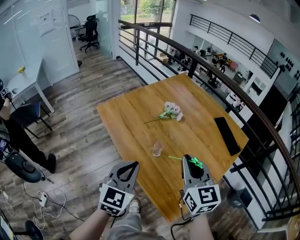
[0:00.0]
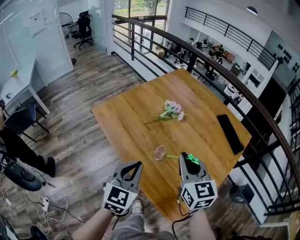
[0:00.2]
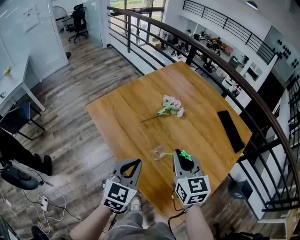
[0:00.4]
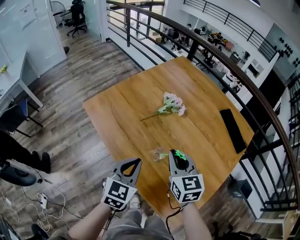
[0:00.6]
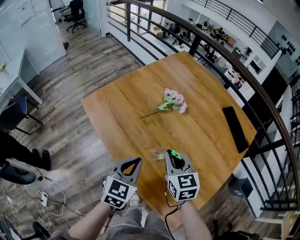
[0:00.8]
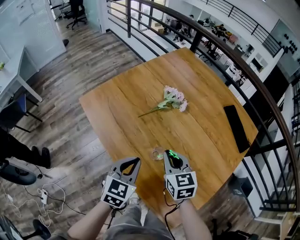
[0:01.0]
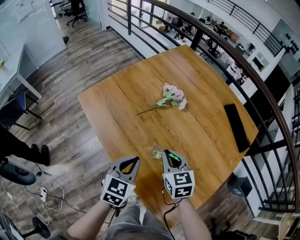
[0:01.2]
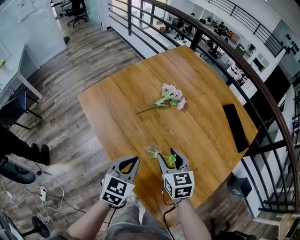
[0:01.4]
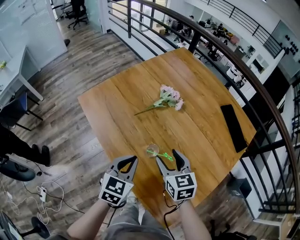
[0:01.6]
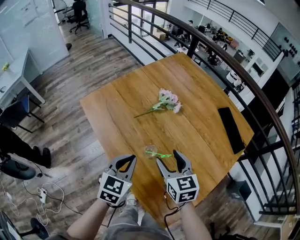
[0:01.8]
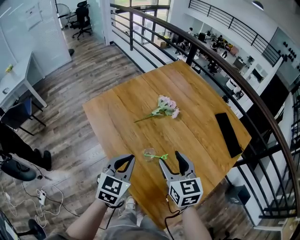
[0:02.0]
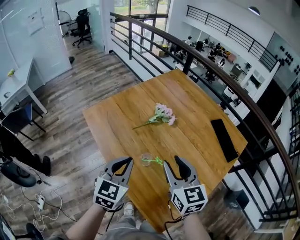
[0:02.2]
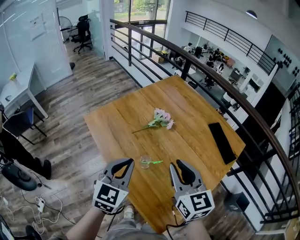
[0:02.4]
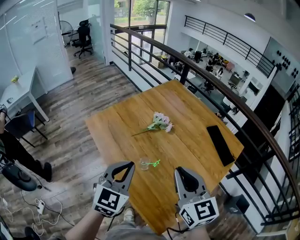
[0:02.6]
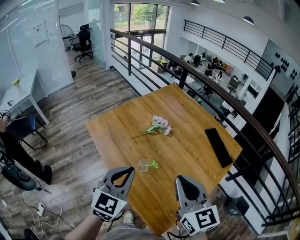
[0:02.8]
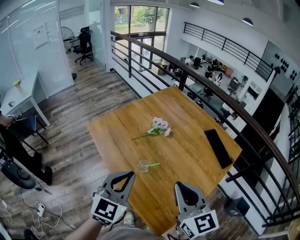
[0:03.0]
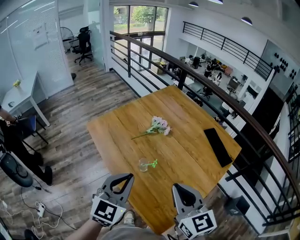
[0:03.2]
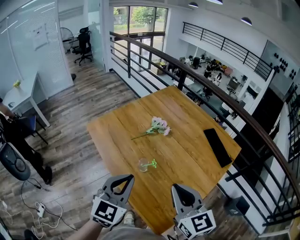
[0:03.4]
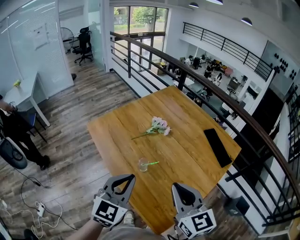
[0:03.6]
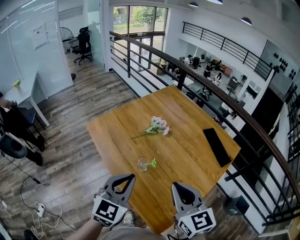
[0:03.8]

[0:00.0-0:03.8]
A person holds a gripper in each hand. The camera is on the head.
0:00.0 to 0:01.2: Both grippers move downward and forward, about 20 cm. The right gripper changes its angle by approximately 20 degrees.
0:01.2 to 0:02.6: Both grippers move upward, some 20 cm. The right gripper turns by some 20 degrees, and opens, then closes again. The left gripper changes its angle by roughly 20 degrees.
0:02.6 to 0:03.8: The grippers both shift backward by some 5 cm.

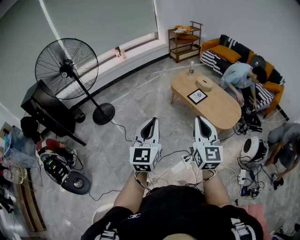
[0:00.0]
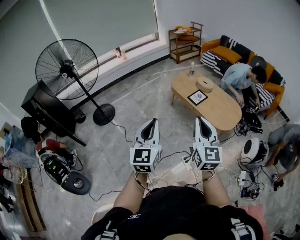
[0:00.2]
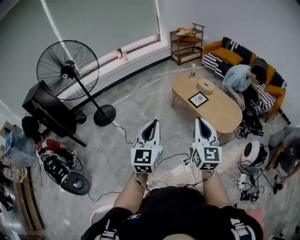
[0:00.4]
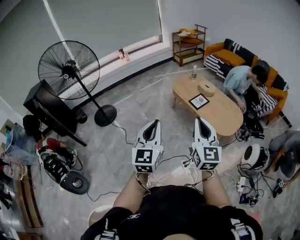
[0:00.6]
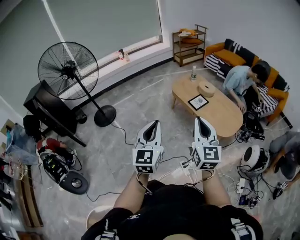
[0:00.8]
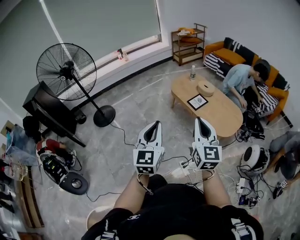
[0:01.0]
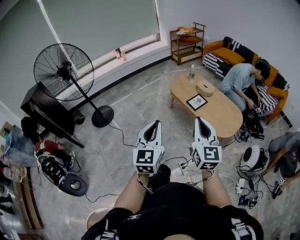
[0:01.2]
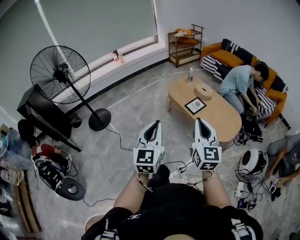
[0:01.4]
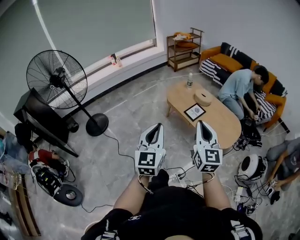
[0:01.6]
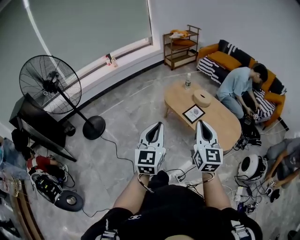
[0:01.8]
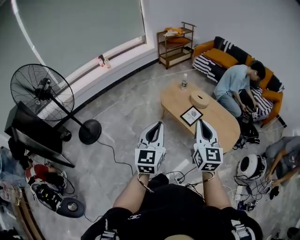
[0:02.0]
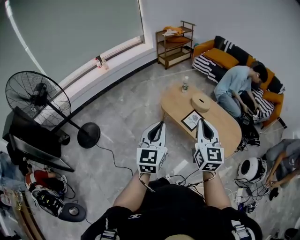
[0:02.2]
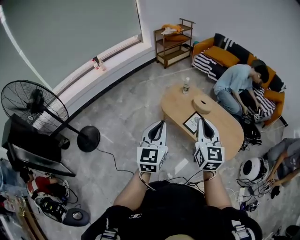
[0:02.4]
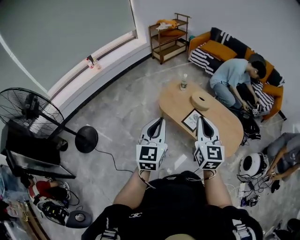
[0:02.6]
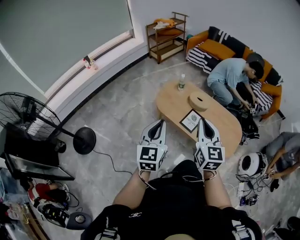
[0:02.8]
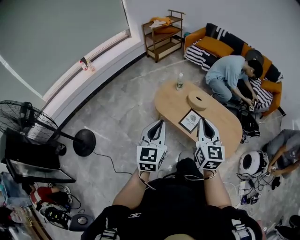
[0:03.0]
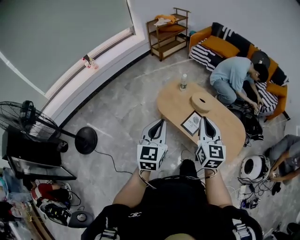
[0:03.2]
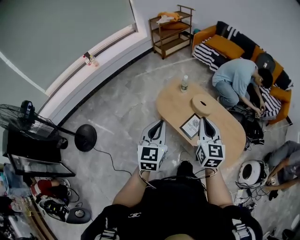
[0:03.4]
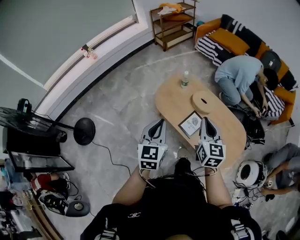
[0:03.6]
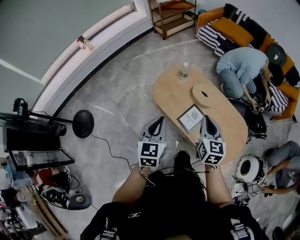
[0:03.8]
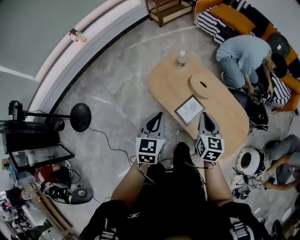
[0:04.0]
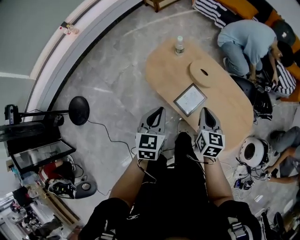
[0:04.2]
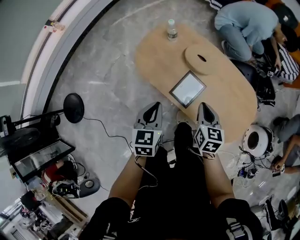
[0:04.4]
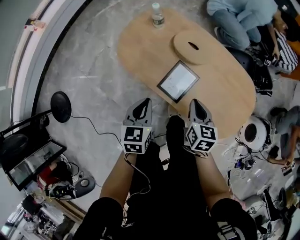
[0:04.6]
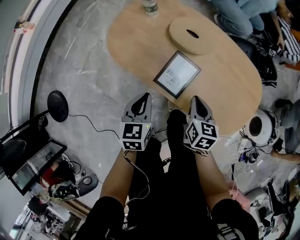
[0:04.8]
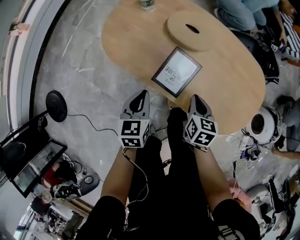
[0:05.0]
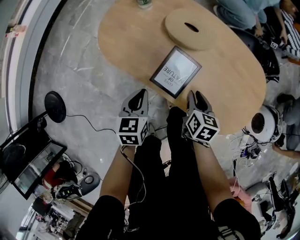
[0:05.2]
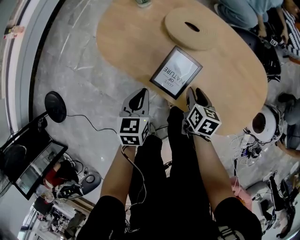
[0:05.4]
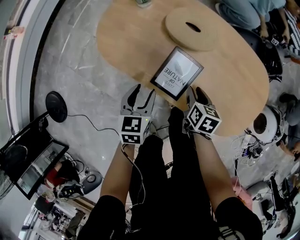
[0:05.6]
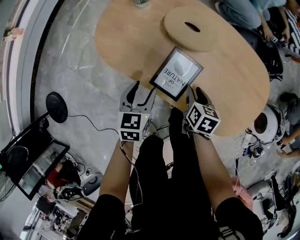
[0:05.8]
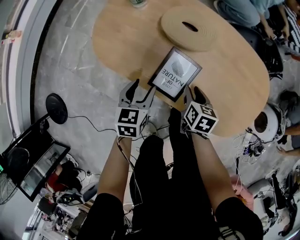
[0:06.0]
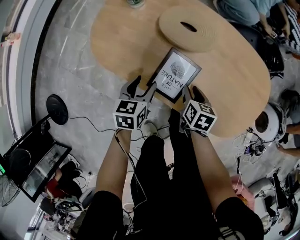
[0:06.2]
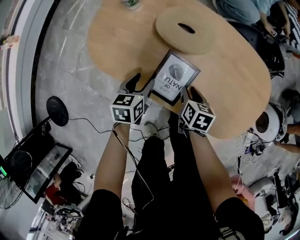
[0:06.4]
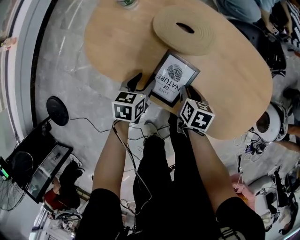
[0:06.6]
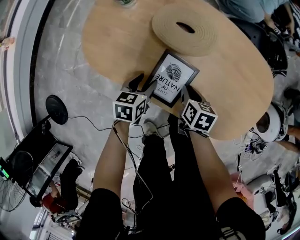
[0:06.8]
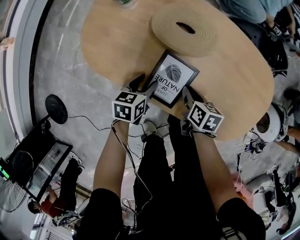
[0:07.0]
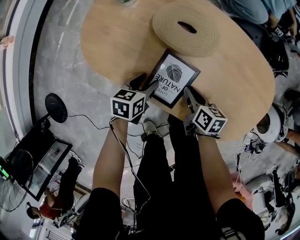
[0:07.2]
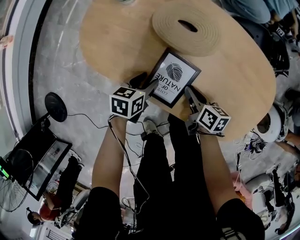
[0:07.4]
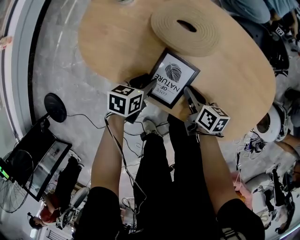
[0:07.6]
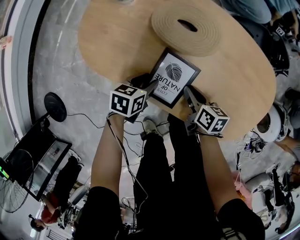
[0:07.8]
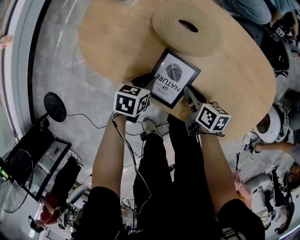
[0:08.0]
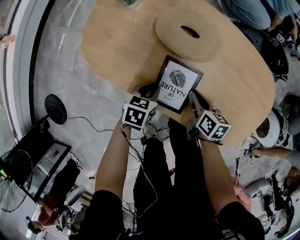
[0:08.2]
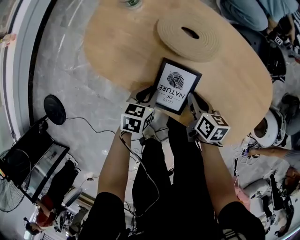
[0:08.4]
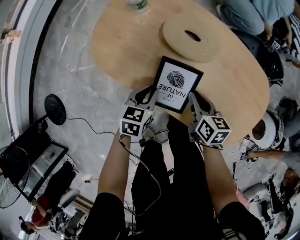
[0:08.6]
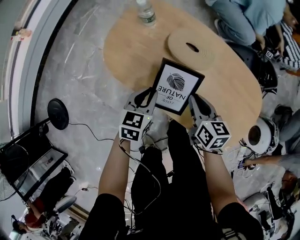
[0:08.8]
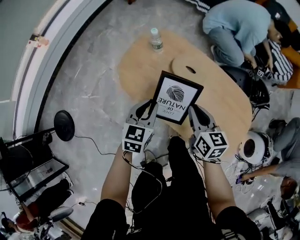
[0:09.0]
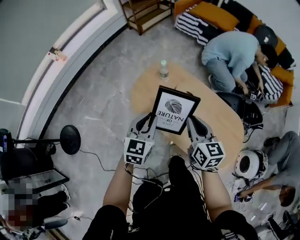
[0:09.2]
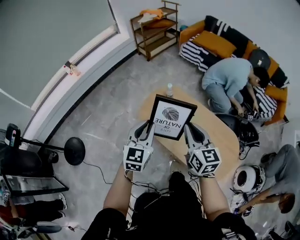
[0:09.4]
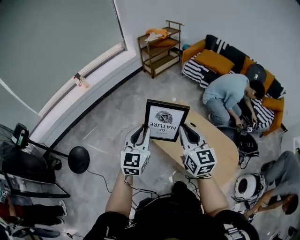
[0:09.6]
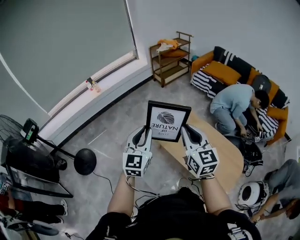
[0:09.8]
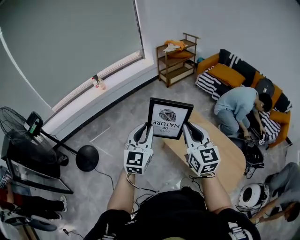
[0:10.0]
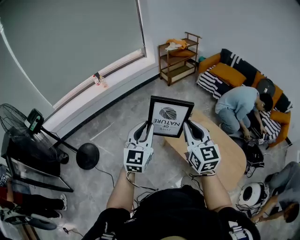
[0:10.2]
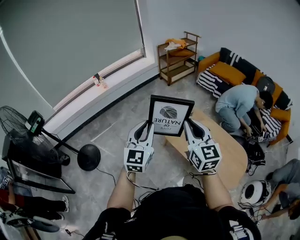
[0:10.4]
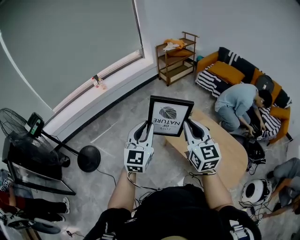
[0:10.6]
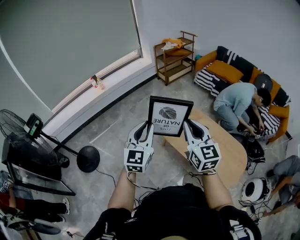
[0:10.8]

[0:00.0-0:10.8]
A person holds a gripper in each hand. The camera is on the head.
0:00.0 to 0:01.6: Both grippers travel together forward, approximately 20 cm.
0:01.6 to 0:03.0: Both grippers travel together forward, about 35 cm.
0:03.0 to 0:04.6: The two grippers go roughly 50 cm downward and forward. The right gripper tips its fingers downward by some 30 degrees. Meanwhile the left gripper tilts its fingers some 30 degrees downward.
0:04.6 to 0:06.2: The right gripper goes approximately 20 cm downward, changes its angle by some 20 degrees, and opens up; the left gripper goes about 20 cm downward and forward, and opens.
0:06.2 to 0:07.8: The left gripper heads downward, covering roughly 10 cm, and changes its angle by approximately 20 degrees, while the right gripper turns by about 20 degrees.
0:07.8 to 0:09.2: The grippers both shift upward by about 50 cm. The left gripper swivels approximately 50 degrees, and closes up. The right gripper turns by some 50 degrees.
0:09.2 to 0:10.8: The right gripper travels upward and to the left by roughly 40 cm, and changes its angle by roughly 30 degrees. Meanwhile the left gripper goes roughly 40 cm upward, to the left and backward, and swivels roughly 30 degrees.

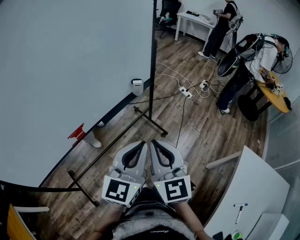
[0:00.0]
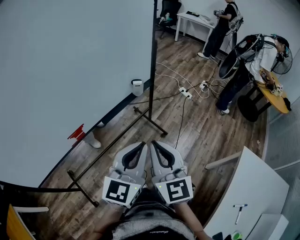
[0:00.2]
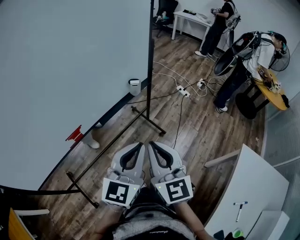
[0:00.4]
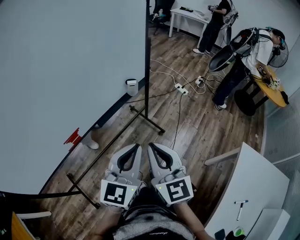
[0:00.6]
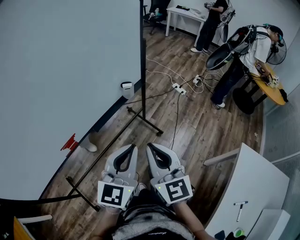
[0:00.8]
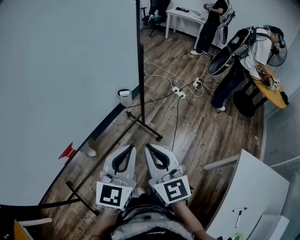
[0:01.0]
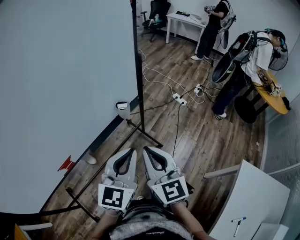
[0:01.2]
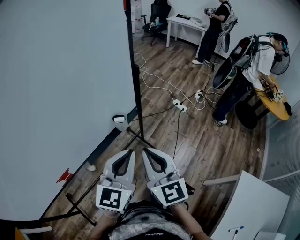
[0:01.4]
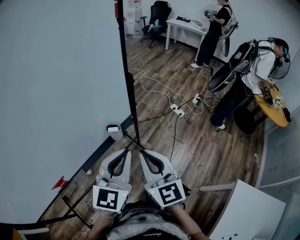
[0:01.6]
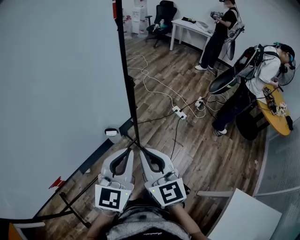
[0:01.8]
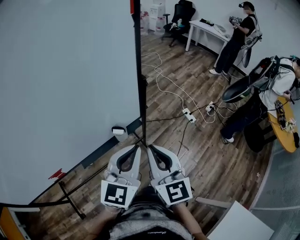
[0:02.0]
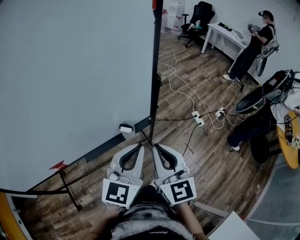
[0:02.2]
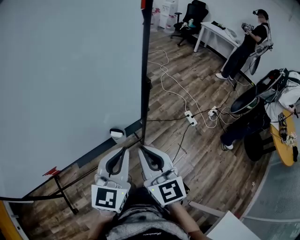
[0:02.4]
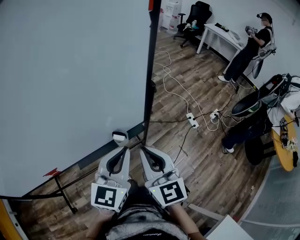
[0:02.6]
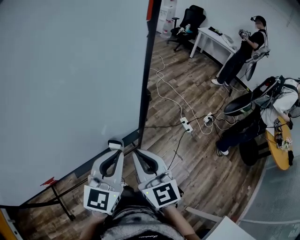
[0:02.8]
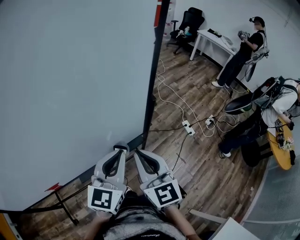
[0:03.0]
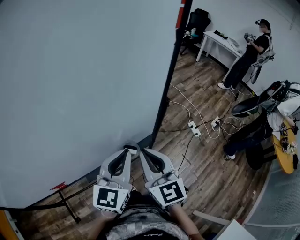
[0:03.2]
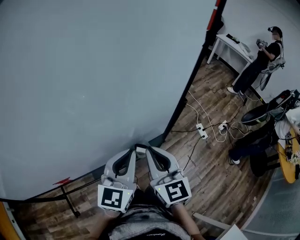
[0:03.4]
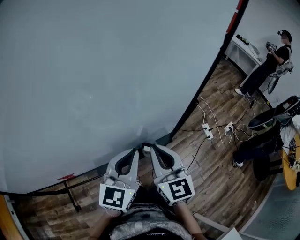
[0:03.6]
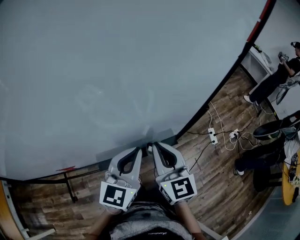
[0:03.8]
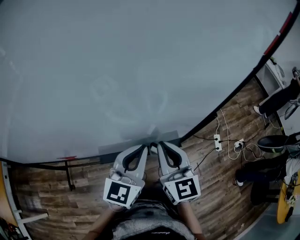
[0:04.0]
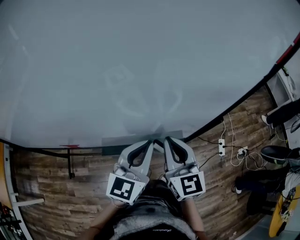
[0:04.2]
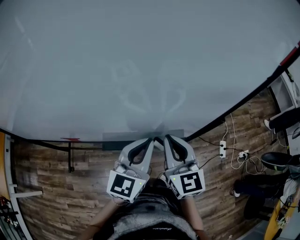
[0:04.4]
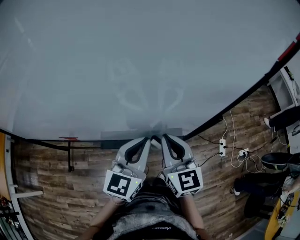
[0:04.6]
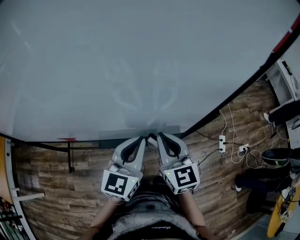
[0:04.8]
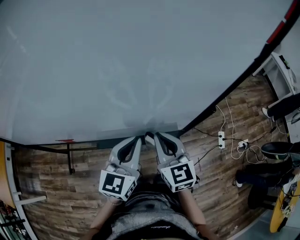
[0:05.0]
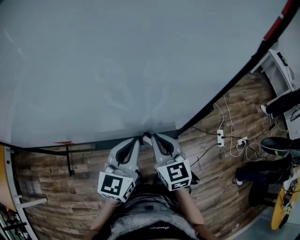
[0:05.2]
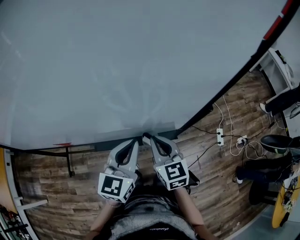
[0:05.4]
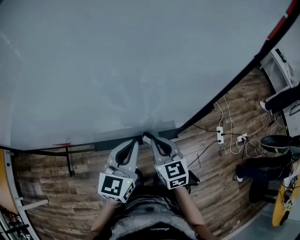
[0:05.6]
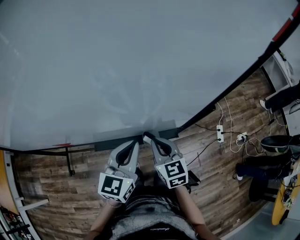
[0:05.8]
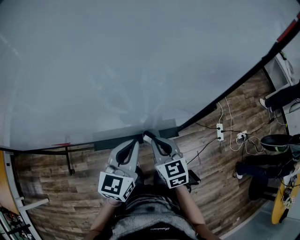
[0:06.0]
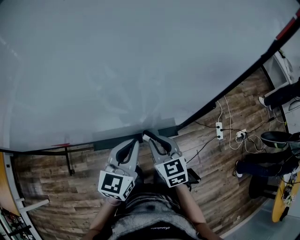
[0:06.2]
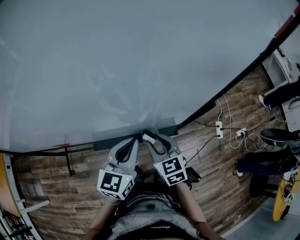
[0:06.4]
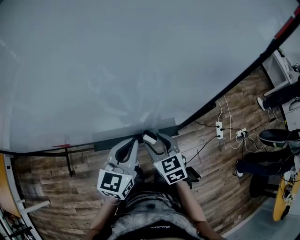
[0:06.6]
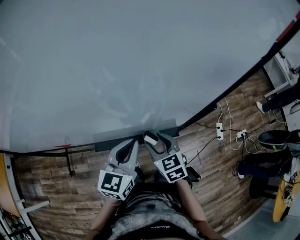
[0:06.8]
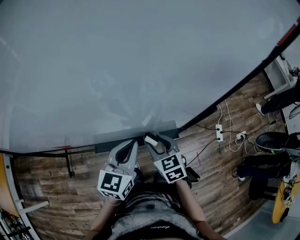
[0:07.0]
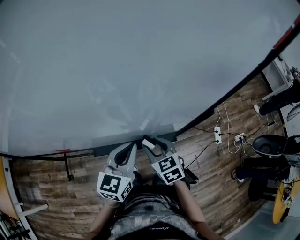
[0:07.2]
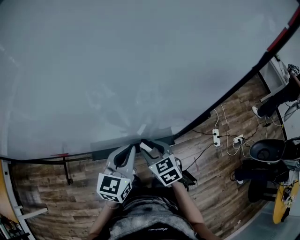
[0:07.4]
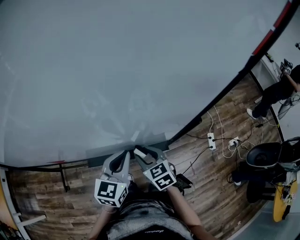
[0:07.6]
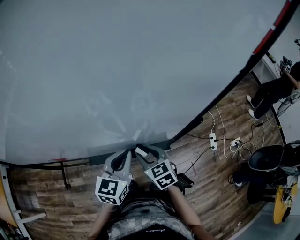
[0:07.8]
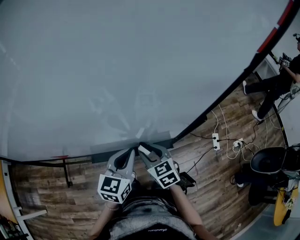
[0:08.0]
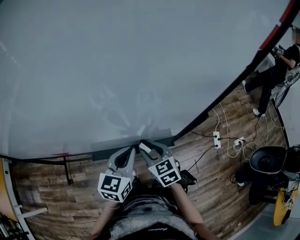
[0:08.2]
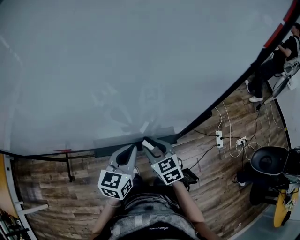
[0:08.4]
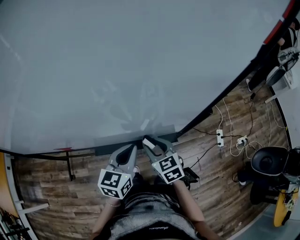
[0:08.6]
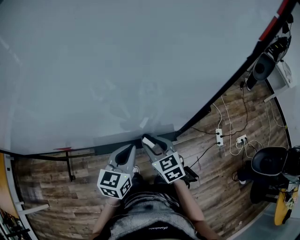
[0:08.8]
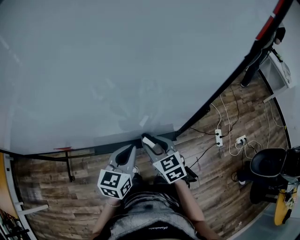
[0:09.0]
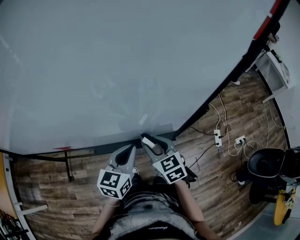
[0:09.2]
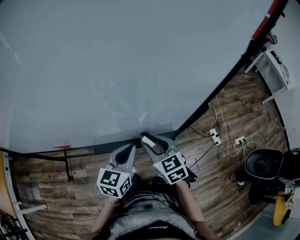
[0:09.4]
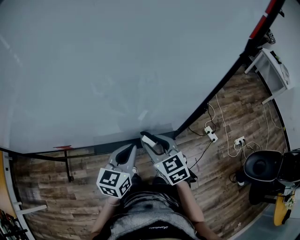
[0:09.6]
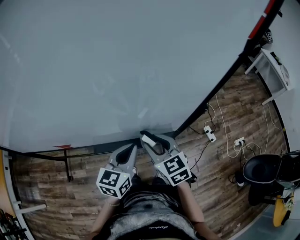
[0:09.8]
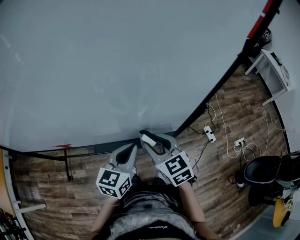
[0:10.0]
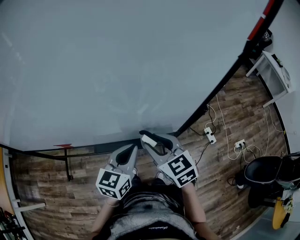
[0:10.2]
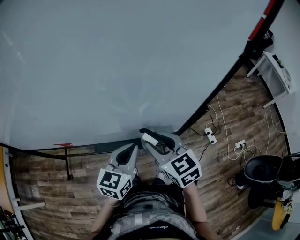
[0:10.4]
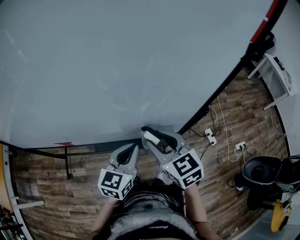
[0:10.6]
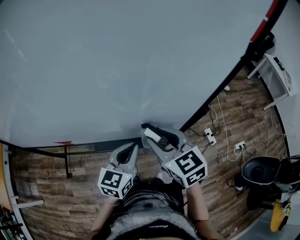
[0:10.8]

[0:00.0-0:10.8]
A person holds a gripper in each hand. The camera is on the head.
0:00.0 to 0:01.6: The grippers both shift forward by approximately 25 cm.
0:01.6 to 0:03.0: The two grippers go approximately 15 cm forward.
0:03.0 to 0:04.6: The left gripper moves to the left and forward, roughly 10 cm, and rotates about 20 degrees; the right gripper travels forward and to the left by some 10 cm, and changes its angle by approximately 20 degrees.
0:04.6 to 0:06.2: The right gripper goes about 10 cm downward; the left gripper shifts roughly 5 cm downward.
0:06.2 to 0:07.8: The right gripper opens its fingers.
0:07.8 to 0:09.2: There are only small adjustments of the grippers.
0:09.2 to 0:10.8: The right gripper goes some 15 cm upward.
